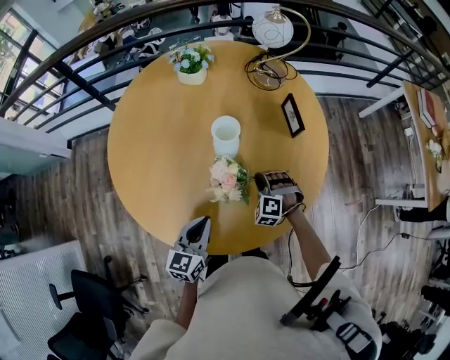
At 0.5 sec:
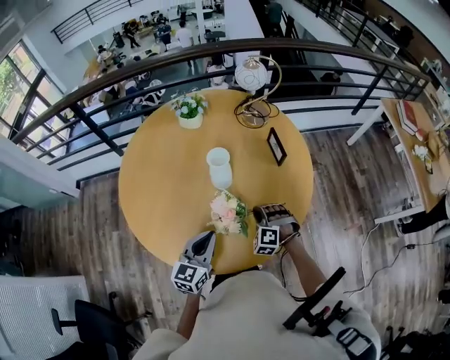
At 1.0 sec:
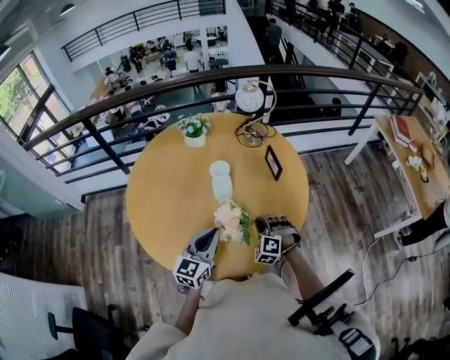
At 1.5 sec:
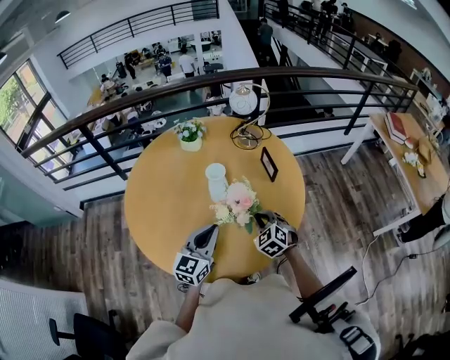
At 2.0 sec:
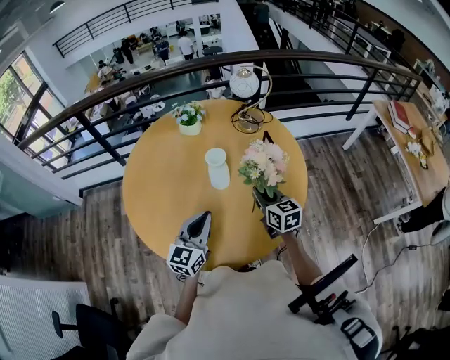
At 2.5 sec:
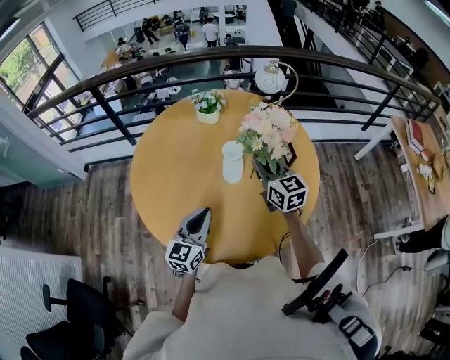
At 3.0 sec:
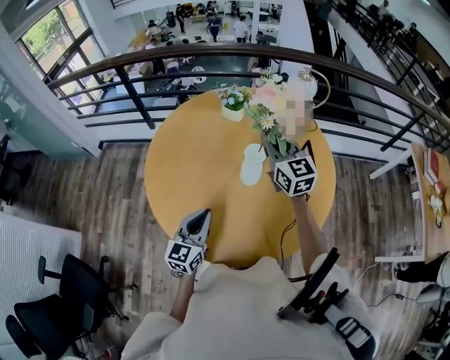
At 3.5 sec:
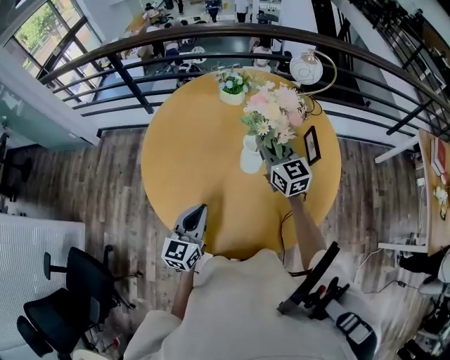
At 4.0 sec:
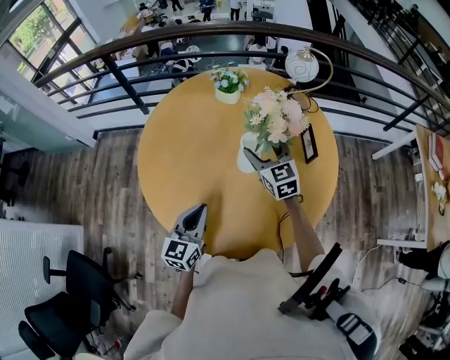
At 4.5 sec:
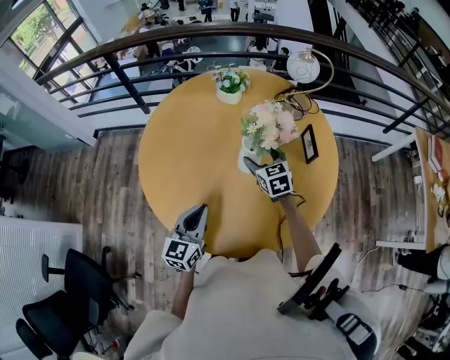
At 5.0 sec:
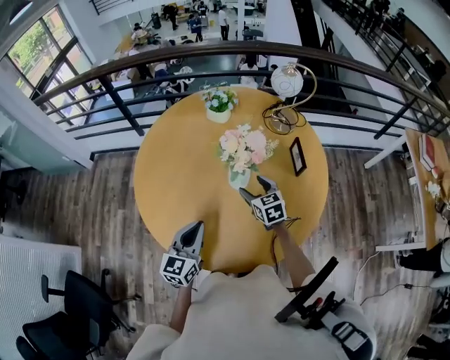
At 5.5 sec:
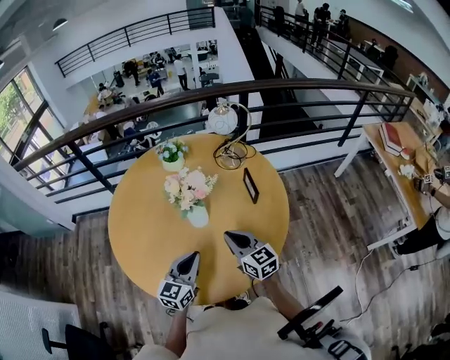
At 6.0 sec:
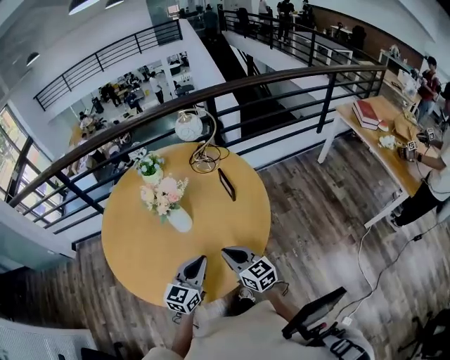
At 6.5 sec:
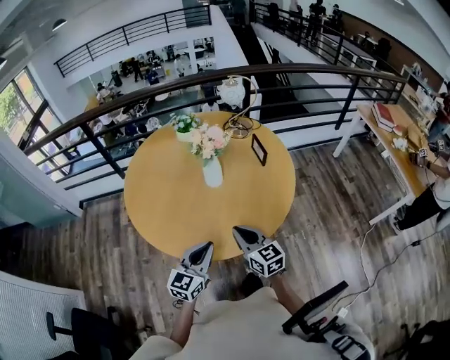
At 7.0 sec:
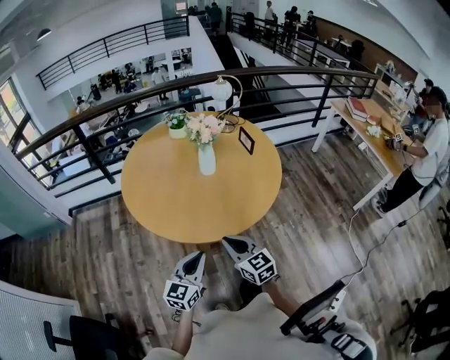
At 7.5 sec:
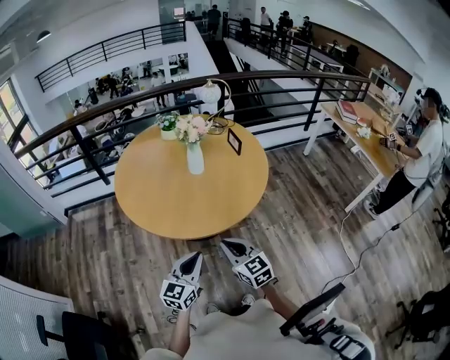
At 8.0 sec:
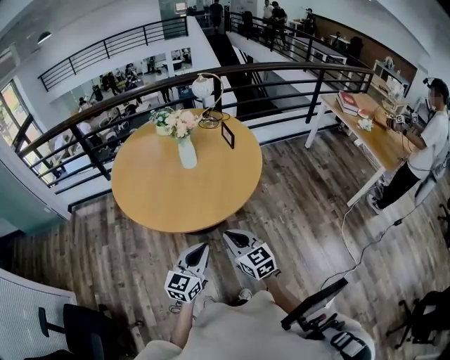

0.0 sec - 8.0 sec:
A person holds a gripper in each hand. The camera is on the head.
0.0 sec - 2.0 sec: The right gripper is displaced upward by some 15 cm, and twists roughly 80 degrees clockwise, seen from behind. Meanwhile the left gripper shifts roughly 10 cm upward and forward, and turns by approximately 20 degrees.
2.0 sec - 4.0 sec: The right gripper shifts roughly 15 cm forward and to the left, travels upward and back again, approximately 15 cm each way, turns by approximately 30 degrees, and opens its fingers; the left gripper shifts approximately 10 cm to the left.
4.0 sec - 6.0 sec: The left gripper heads to the right, covering about 20 cm, and rotates roughly 20 degrees; the right gripper shifts roughly 25 cm backward and to the right, turns by about 20 degrees, and closes its fingers.
6.0 sec - 8.0 sec: Both grippers move backward, roughly 25 cm.

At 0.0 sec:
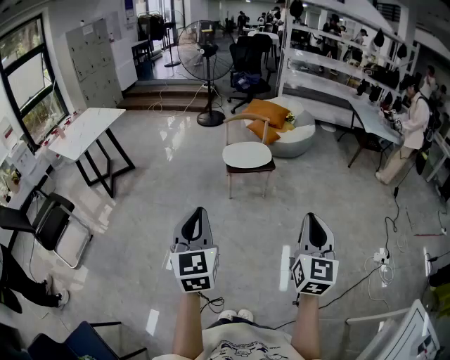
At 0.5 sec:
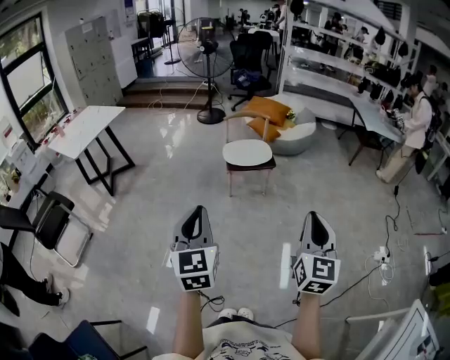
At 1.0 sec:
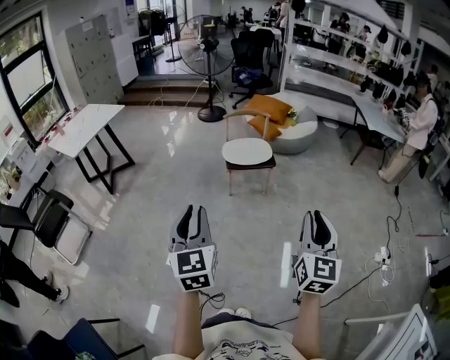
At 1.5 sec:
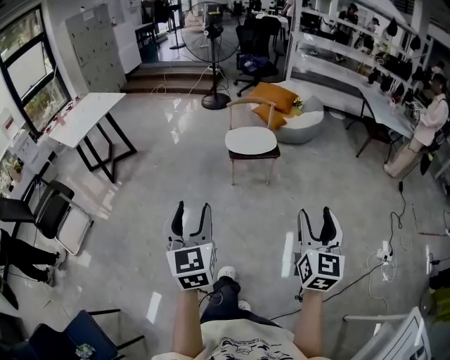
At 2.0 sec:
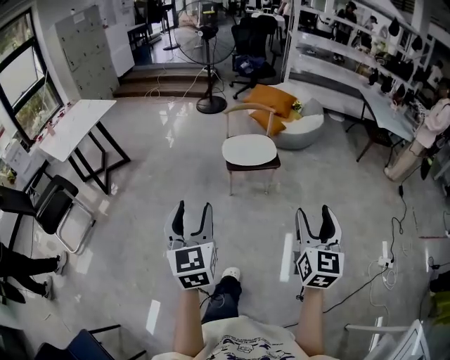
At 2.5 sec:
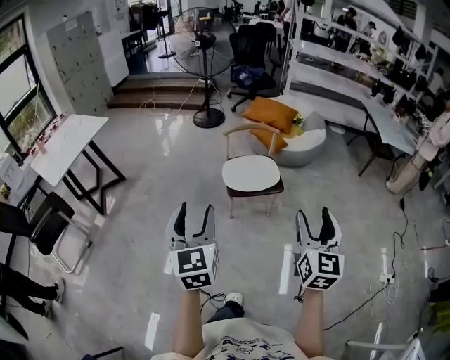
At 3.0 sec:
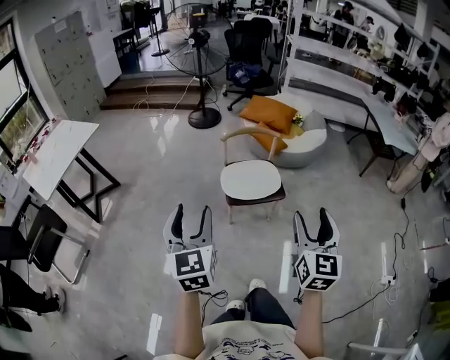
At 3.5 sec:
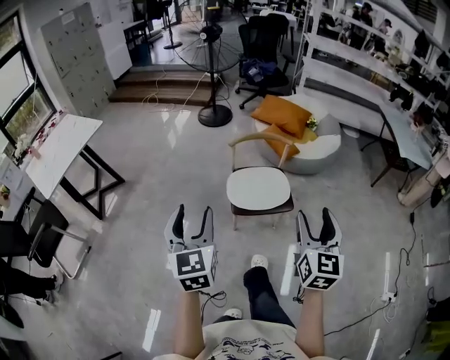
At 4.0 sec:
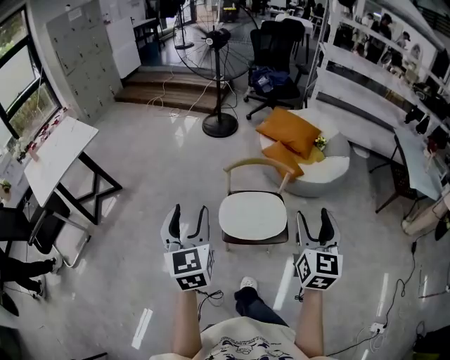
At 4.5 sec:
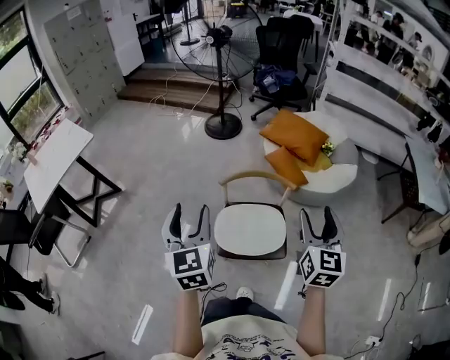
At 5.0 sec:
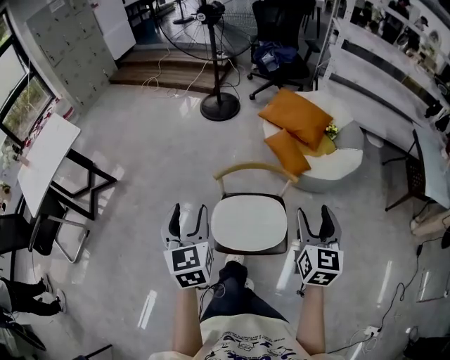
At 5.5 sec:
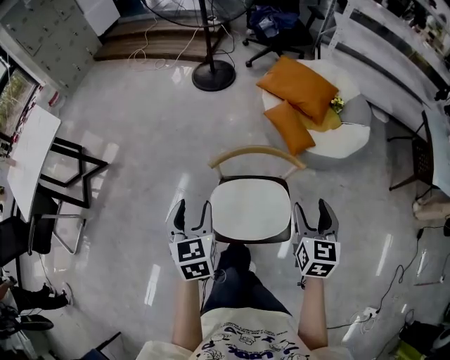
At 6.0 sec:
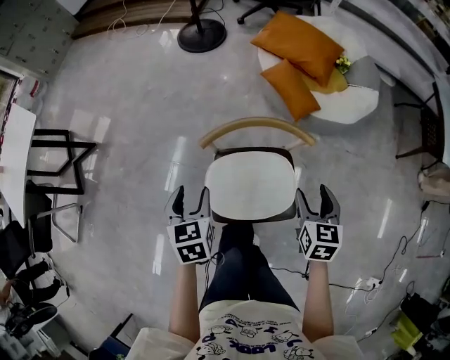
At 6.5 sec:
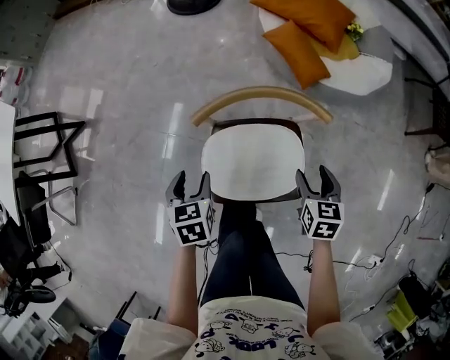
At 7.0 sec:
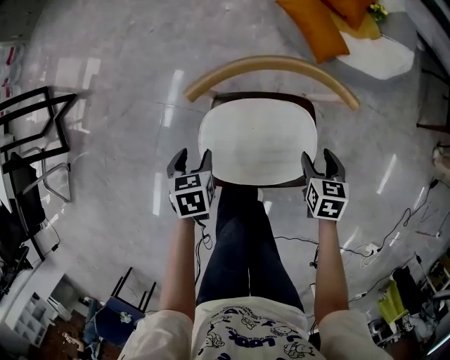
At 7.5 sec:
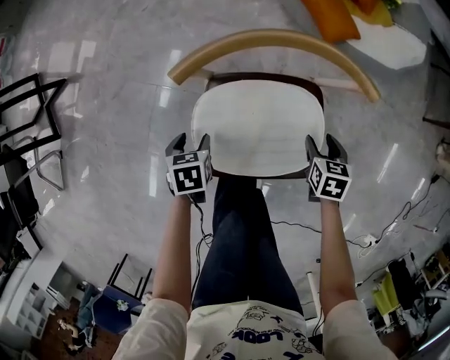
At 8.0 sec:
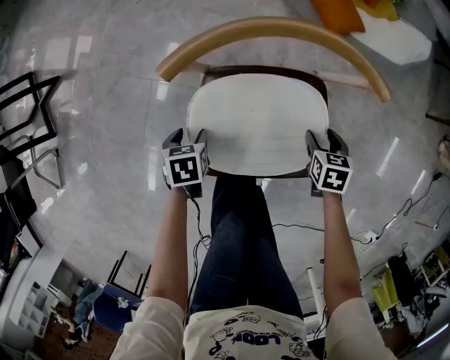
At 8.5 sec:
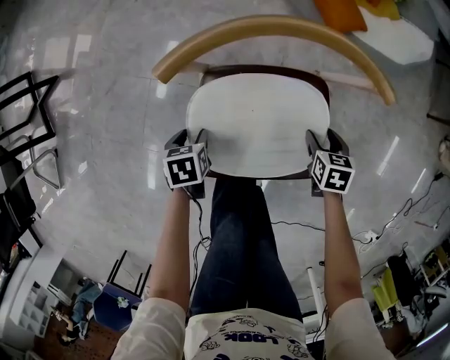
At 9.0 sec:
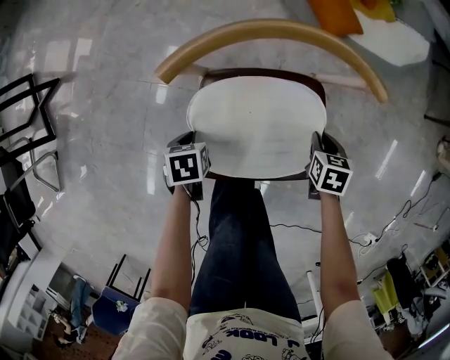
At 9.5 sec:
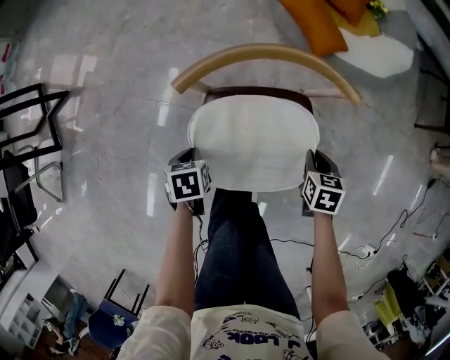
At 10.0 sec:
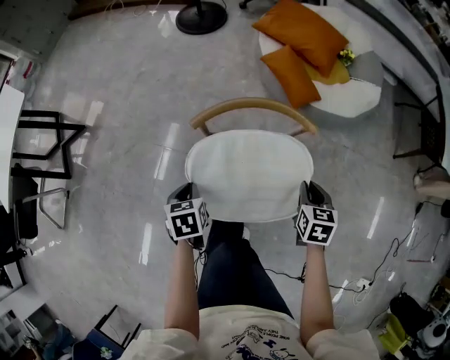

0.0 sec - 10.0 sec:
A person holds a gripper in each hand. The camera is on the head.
0.0 sec - 2.0 sec: The grippers both shift forward by some 20 cm. The right gripper opens its fingers; the left gripper opens its fingers.
2.0 sec - 4.0 sec: The pair of grippers is taken forward, roughly 70 cm.
4.0 sec - 6.0 sec: Both grippers move forward and downward, about 50 cm. The right gripper angles its fingers downward, by some 30 degrees. Meanwhile the left gripper points its fingers roughly 30 degrees further downward.
6.0 sec - 8.0 sec: Both grippers travel together downward, roughly 40 cm. The left gripper swivels approximately 30 degrees. Meanwhile the right gripper rotates about 30 degrees.
8.0 sec - 10.0 sec: Both grippers travel together upward, about 30 cm. The right gripper closes, while the left gripper closes.

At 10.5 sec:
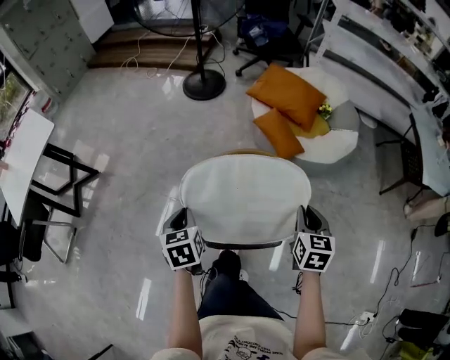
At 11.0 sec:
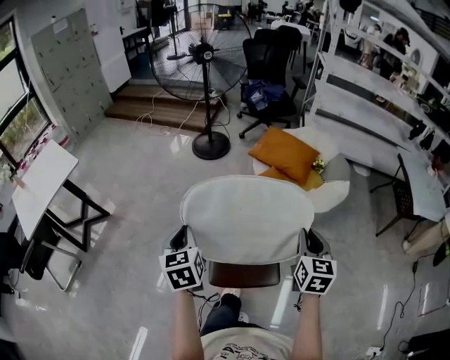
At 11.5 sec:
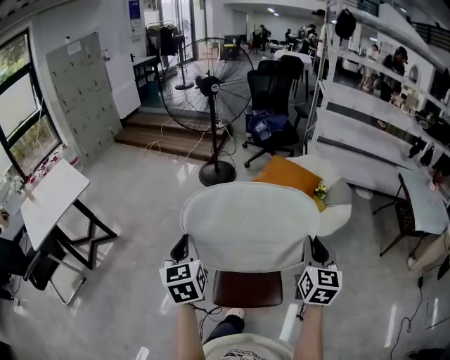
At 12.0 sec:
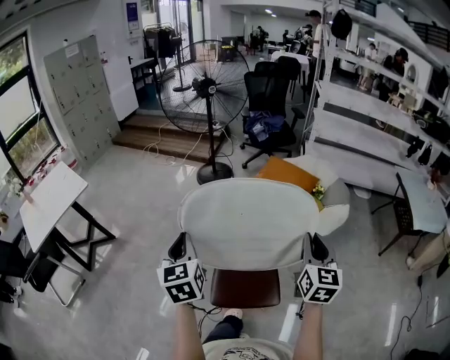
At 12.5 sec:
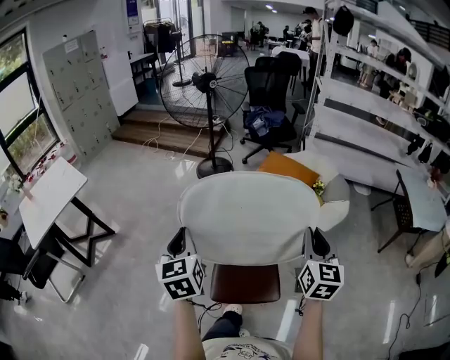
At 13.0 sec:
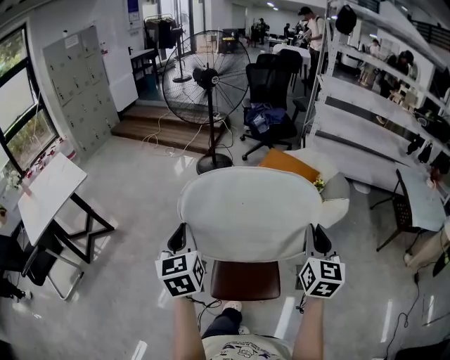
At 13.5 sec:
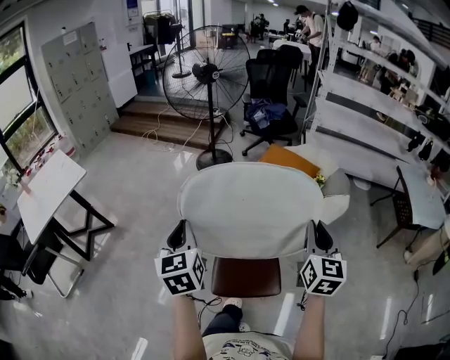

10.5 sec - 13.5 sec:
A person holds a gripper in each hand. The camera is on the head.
10.5 sec - 12.0 sec: The two grippers go roughly 30 cm upward. The left gripper swivels roughly 30 degrees. Meanwhile the right gripper rotates some 30 degrees.
12.0 sec - 13.5 sec: The grippers make only small movements.

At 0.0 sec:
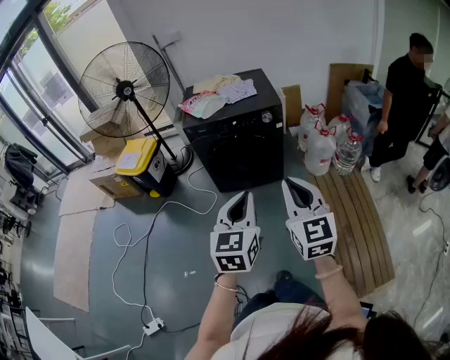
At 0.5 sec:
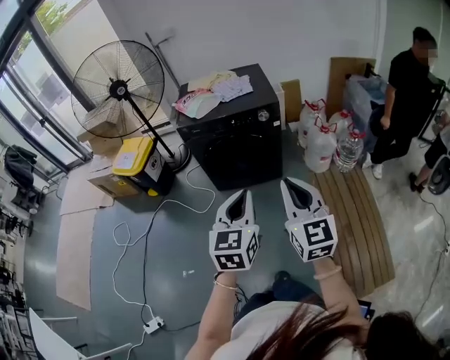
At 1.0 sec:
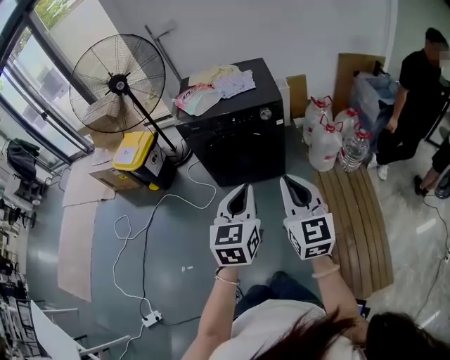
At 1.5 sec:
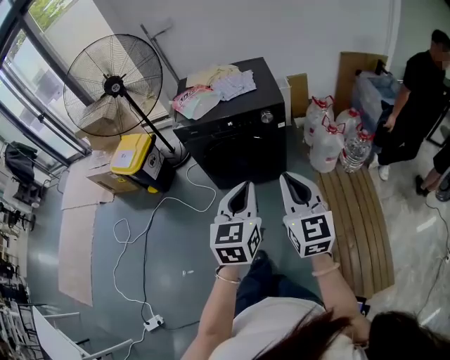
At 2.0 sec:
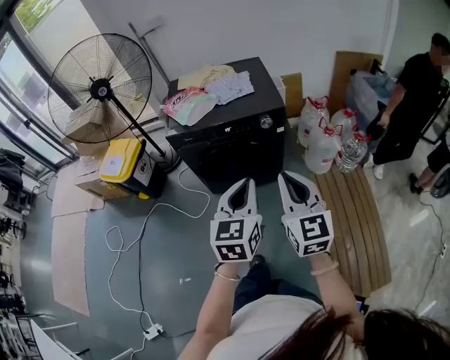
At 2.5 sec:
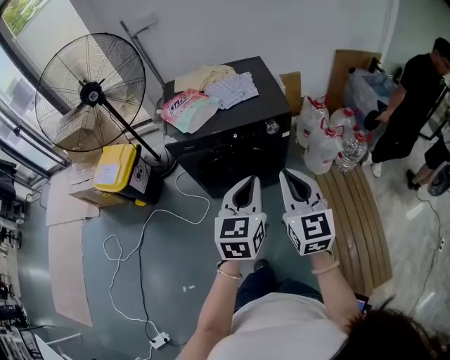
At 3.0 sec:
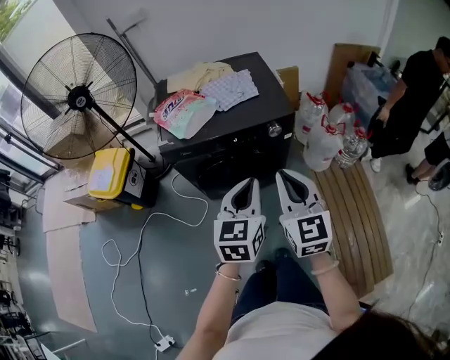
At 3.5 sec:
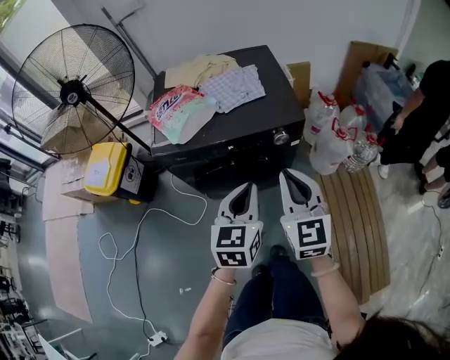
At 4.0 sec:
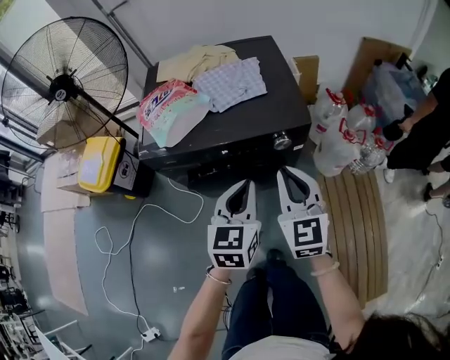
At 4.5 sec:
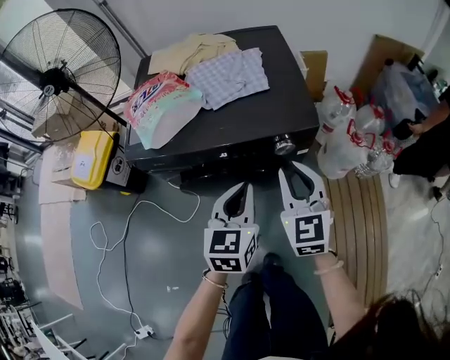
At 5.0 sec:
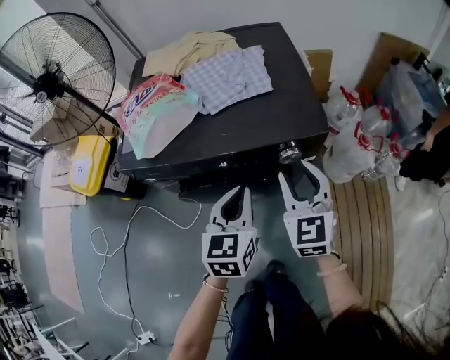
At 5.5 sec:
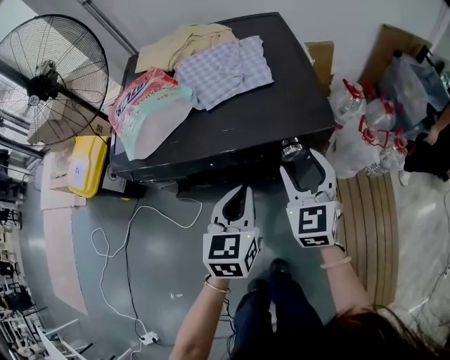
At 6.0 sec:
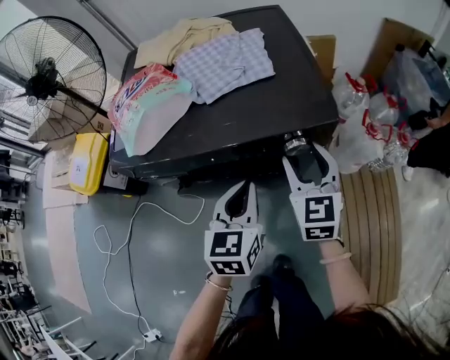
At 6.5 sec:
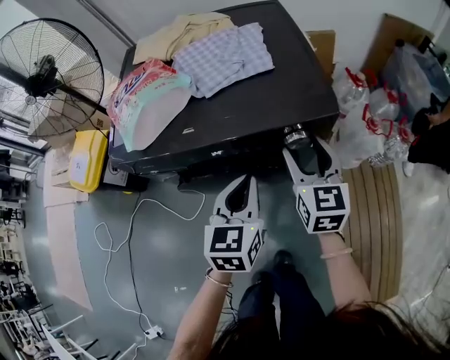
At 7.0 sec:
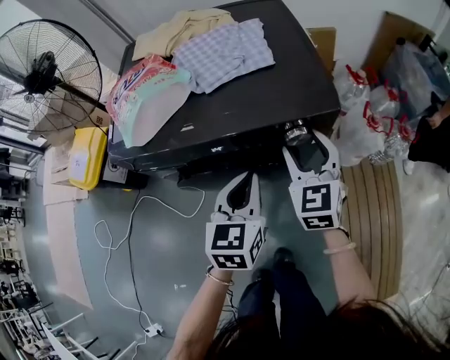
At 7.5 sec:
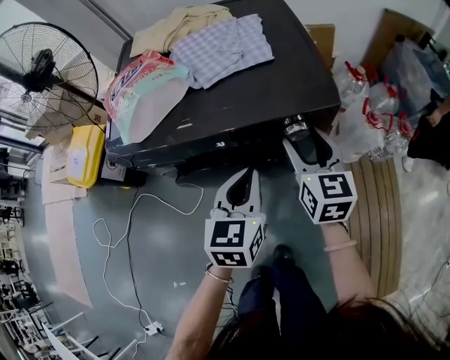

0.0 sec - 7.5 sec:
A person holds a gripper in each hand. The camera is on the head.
0.0 sec - 2.0 sec: Both grippers travel together forward, roughly 20 cm.
2.0 sec - 4.0 sec: Both grippers travel together forward and downward, about 30 cm.
4.0 sec - 5.5 sec: The grippers both shift downward and forward by approximately 15 cm. The right gripper opens its fingers.
5.5 sec - 7.5 sec: The right gripper turns by roughly 30 degrees.
